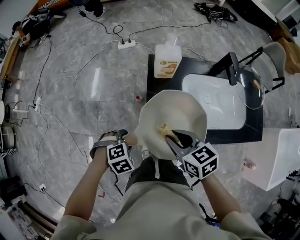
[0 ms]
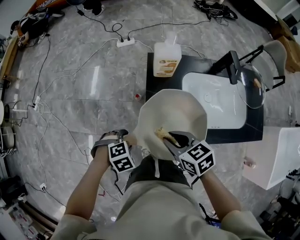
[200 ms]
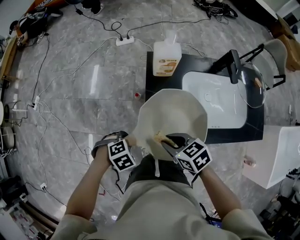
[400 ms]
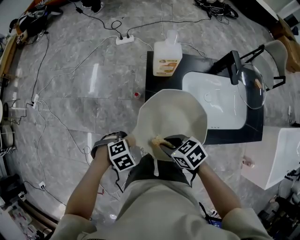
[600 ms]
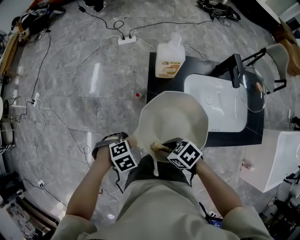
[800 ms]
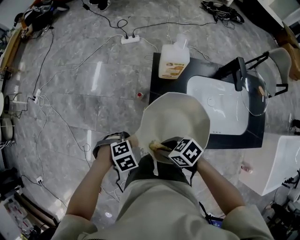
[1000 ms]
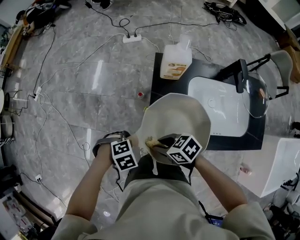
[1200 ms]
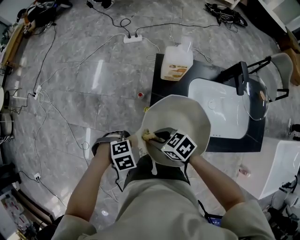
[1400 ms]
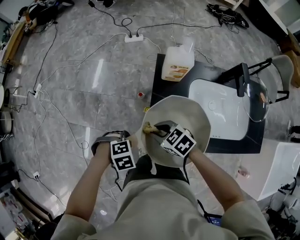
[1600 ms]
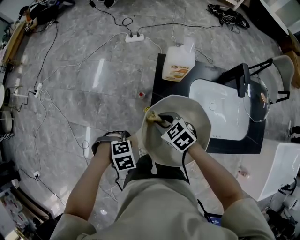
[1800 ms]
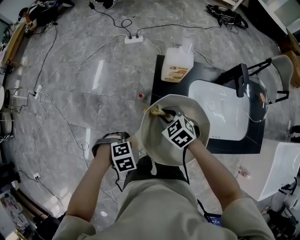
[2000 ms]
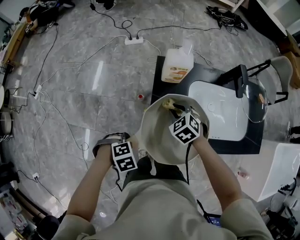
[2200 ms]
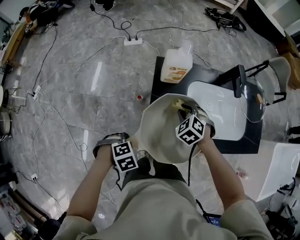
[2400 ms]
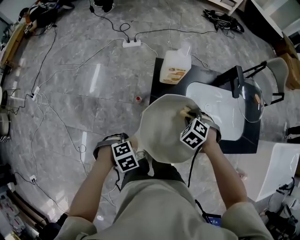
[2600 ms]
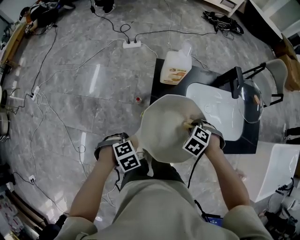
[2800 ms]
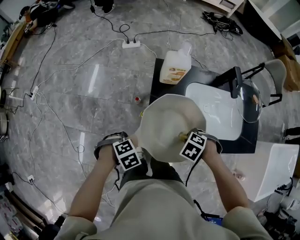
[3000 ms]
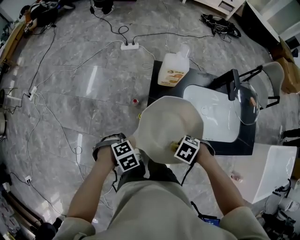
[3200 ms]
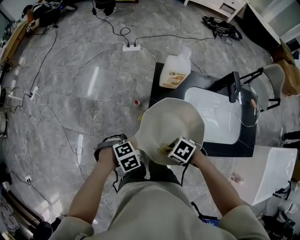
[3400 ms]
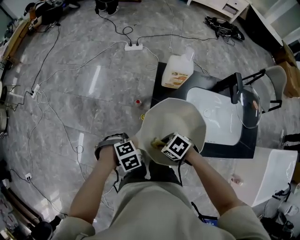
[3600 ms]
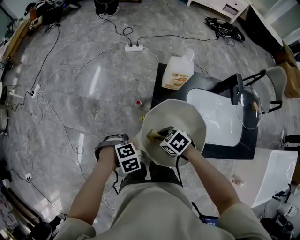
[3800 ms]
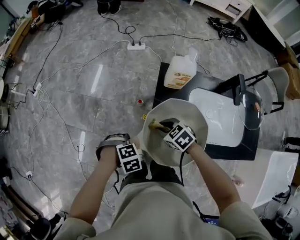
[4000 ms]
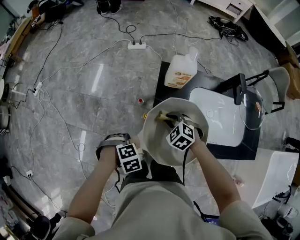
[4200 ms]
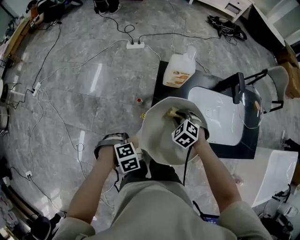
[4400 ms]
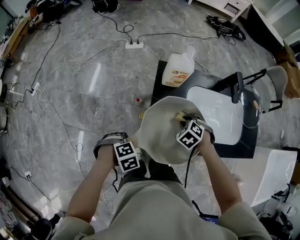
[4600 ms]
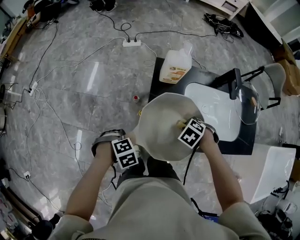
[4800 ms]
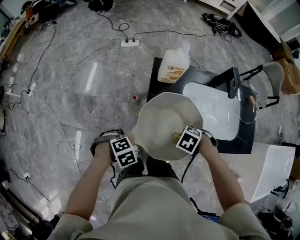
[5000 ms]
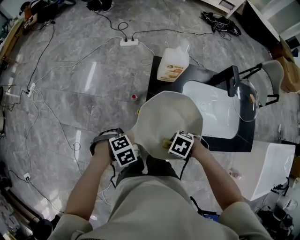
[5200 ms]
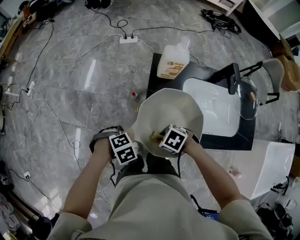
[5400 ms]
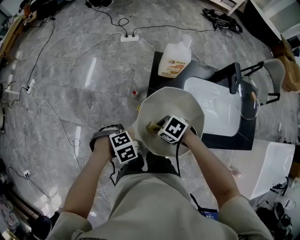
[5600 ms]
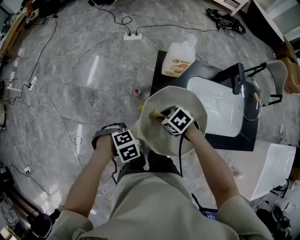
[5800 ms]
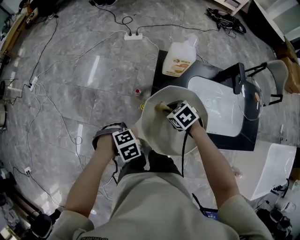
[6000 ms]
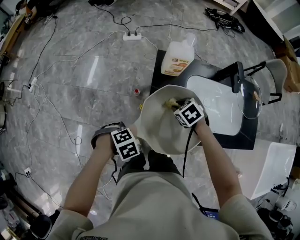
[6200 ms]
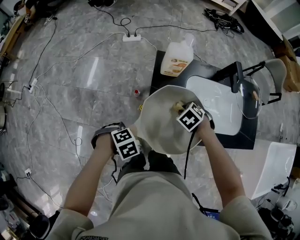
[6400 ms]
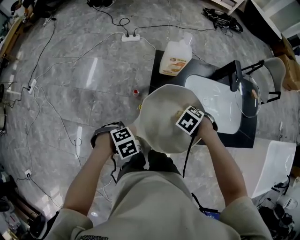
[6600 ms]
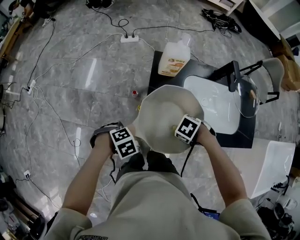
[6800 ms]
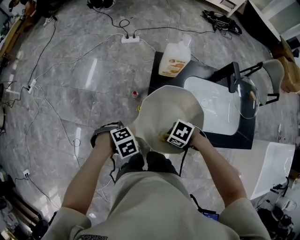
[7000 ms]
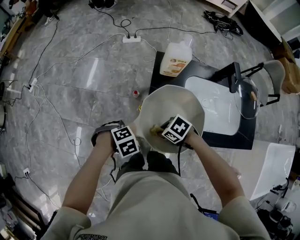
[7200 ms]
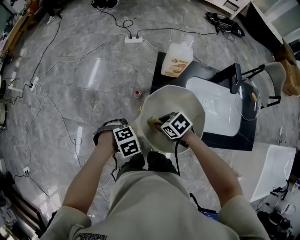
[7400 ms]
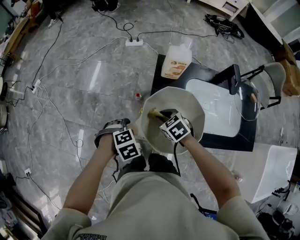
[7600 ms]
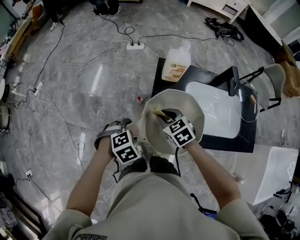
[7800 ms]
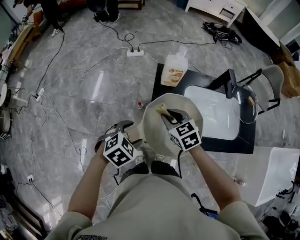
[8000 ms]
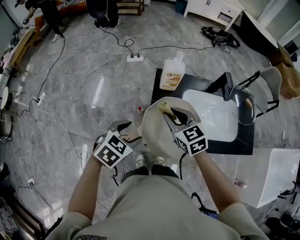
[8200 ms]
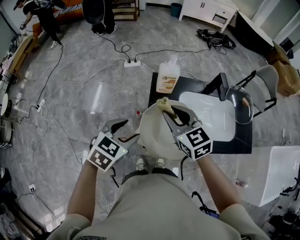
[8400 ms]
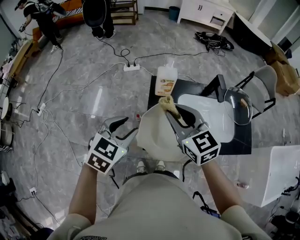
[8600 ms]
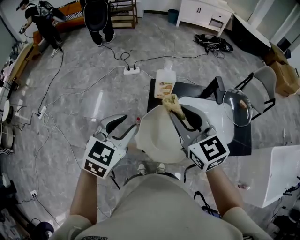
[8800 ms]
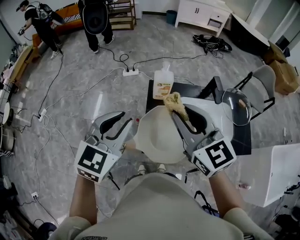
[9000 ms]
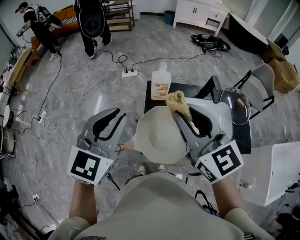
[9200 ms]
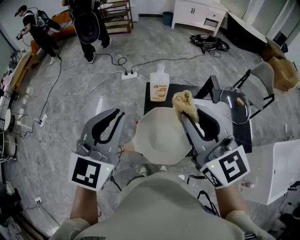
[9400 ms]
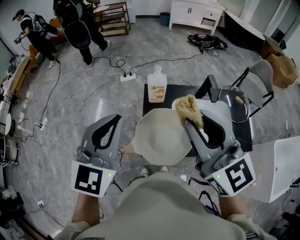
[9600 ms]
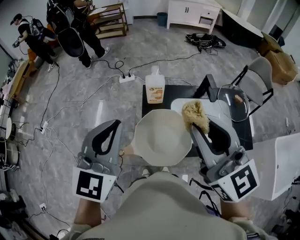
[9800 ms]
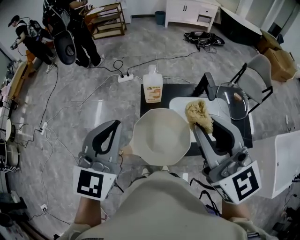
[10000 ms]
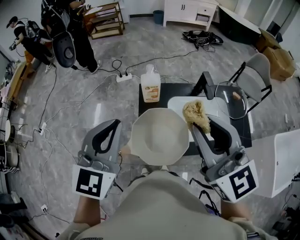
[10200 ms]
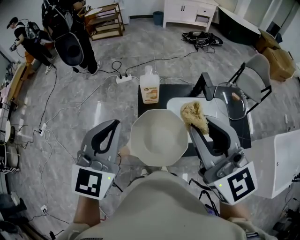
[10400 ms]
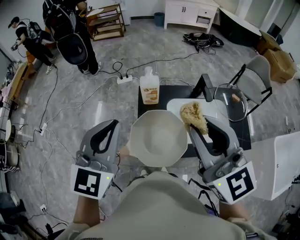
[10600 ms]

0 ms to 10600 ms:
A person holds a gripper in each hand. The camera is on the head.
0 ms to 1600 ms: The left gripper closes its fingers. The right gripper goes approximately 10 cm downward, and rotates roughly 30 degrees.
1600 ms to 3000 ms: The right gripper changes place by about 20 cm, and points its fingers approximately 40 degrees further downward.
4600 ms to 6000 ms: The right gripper changes its angle by some 30 degrees.
6000 ms to 7600 ms: The left gripper opens up.
7600 ms to 9000 ms: The two grippers go some 35 cm upward. The left gripper tilts its fingers about 60 degrees upward, and closes its fingers, while the right gripper tips its fingers upward by roughly 50 degrees.
9000 ms to 10600 ms: The left gripper travels upward by approximately 5 cm. The right gripper travels upward, to the right and backward by about 10 cm.

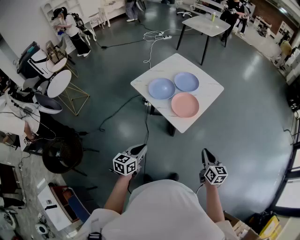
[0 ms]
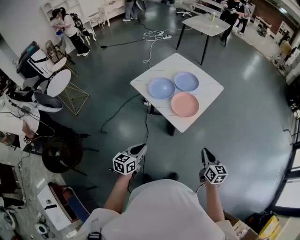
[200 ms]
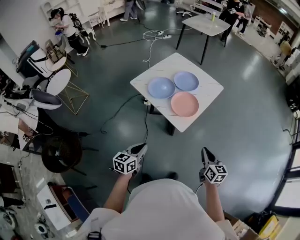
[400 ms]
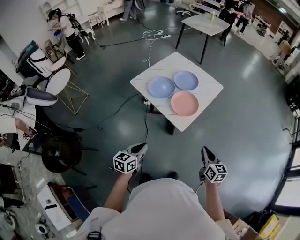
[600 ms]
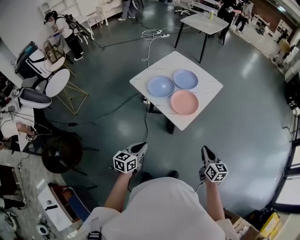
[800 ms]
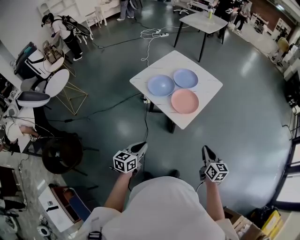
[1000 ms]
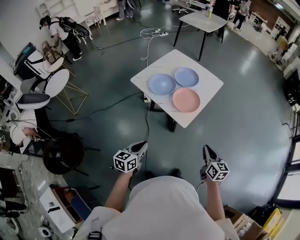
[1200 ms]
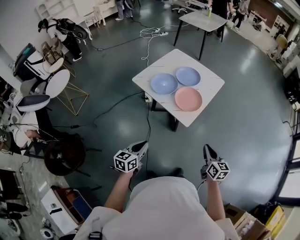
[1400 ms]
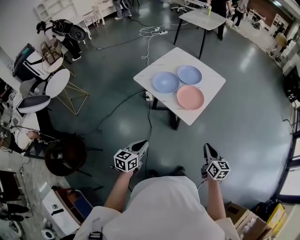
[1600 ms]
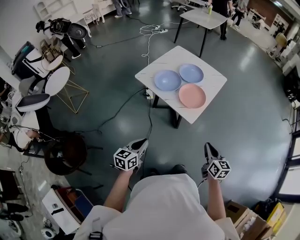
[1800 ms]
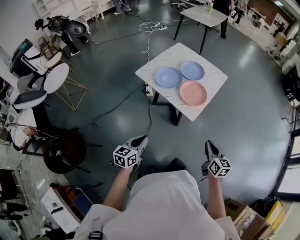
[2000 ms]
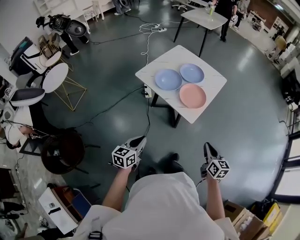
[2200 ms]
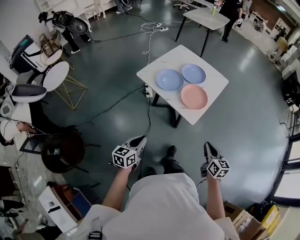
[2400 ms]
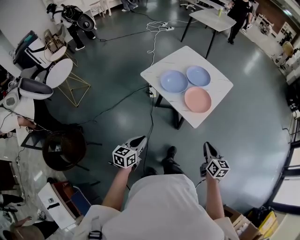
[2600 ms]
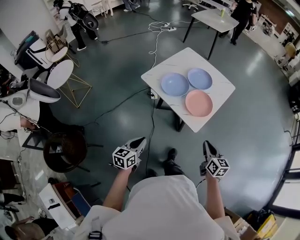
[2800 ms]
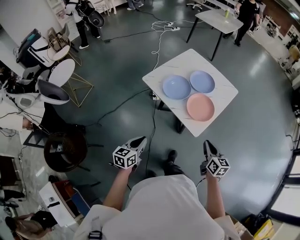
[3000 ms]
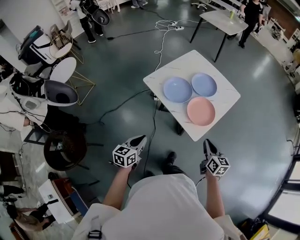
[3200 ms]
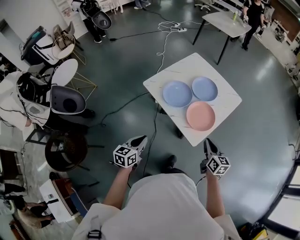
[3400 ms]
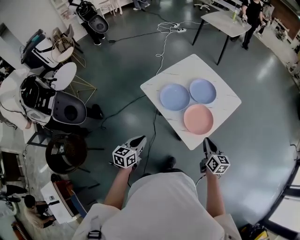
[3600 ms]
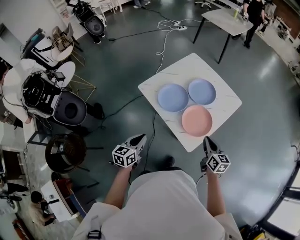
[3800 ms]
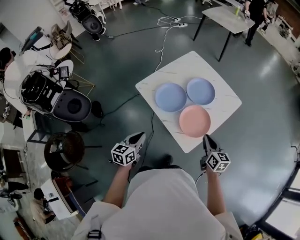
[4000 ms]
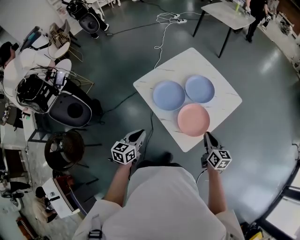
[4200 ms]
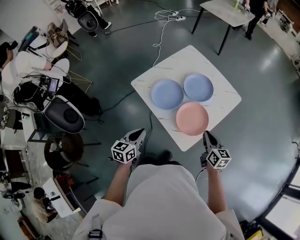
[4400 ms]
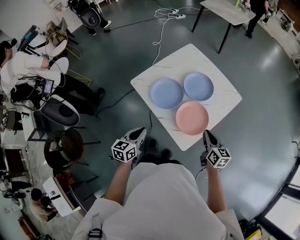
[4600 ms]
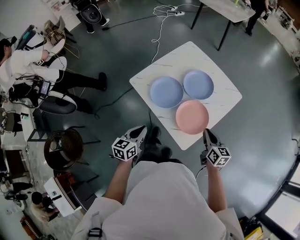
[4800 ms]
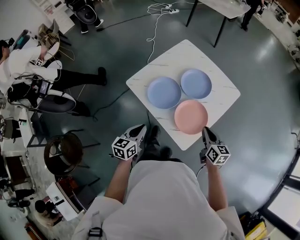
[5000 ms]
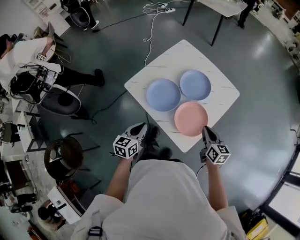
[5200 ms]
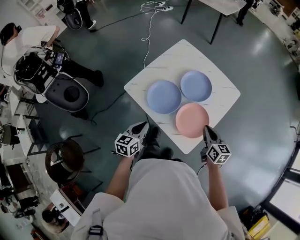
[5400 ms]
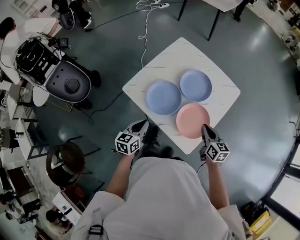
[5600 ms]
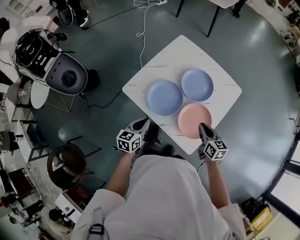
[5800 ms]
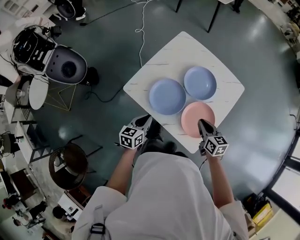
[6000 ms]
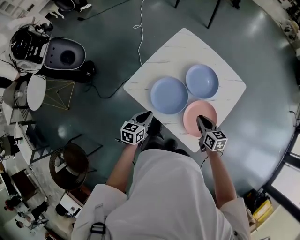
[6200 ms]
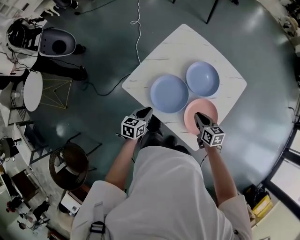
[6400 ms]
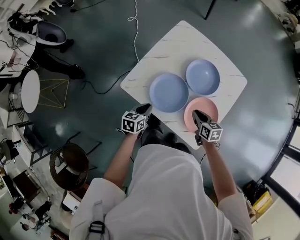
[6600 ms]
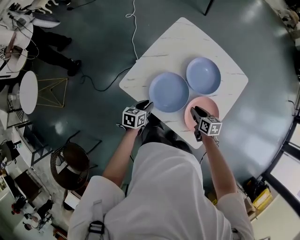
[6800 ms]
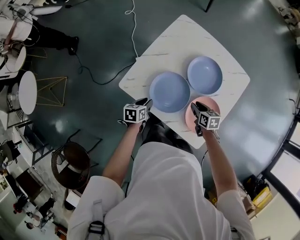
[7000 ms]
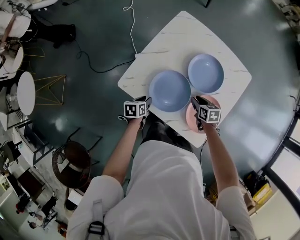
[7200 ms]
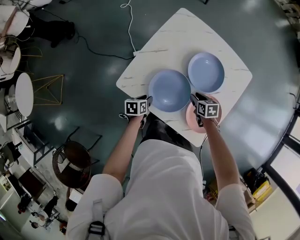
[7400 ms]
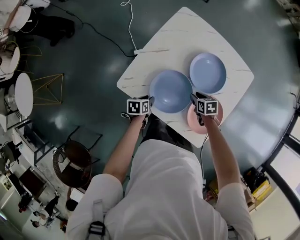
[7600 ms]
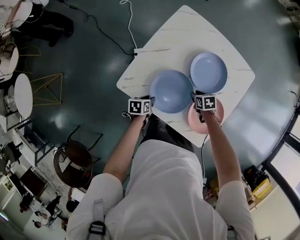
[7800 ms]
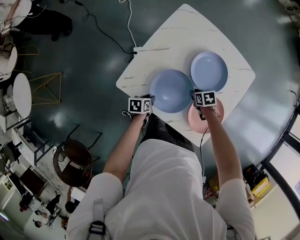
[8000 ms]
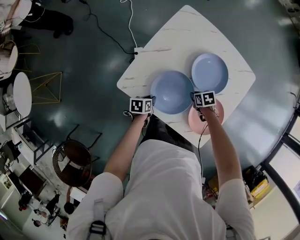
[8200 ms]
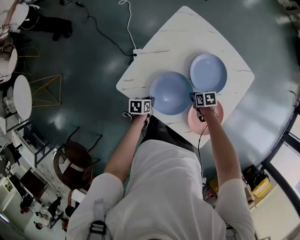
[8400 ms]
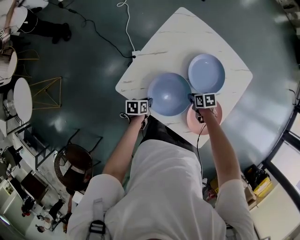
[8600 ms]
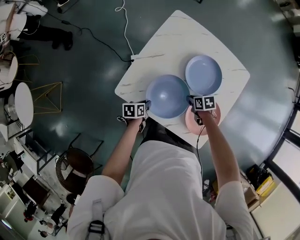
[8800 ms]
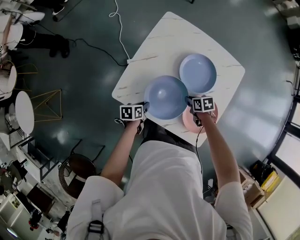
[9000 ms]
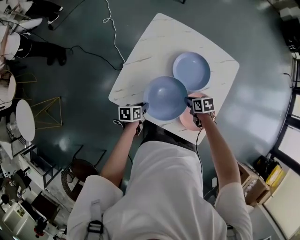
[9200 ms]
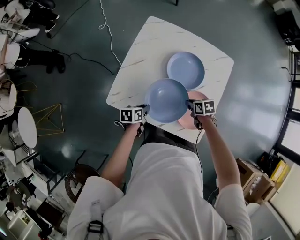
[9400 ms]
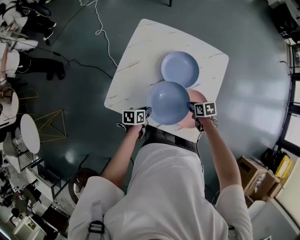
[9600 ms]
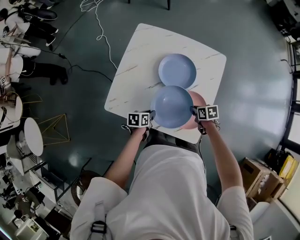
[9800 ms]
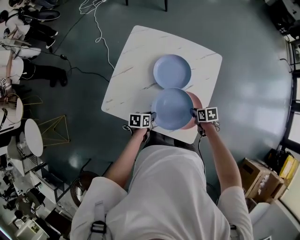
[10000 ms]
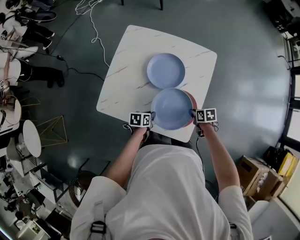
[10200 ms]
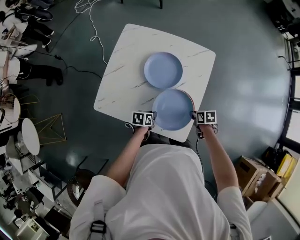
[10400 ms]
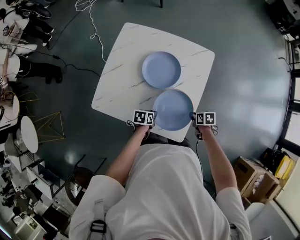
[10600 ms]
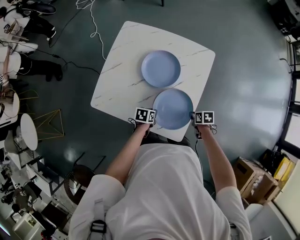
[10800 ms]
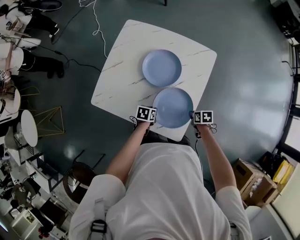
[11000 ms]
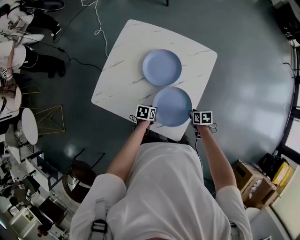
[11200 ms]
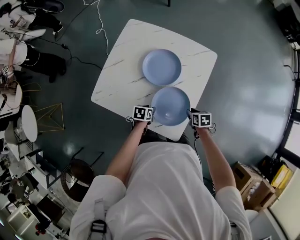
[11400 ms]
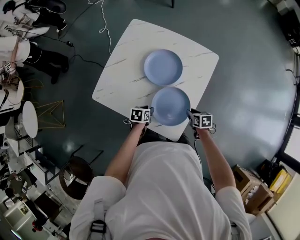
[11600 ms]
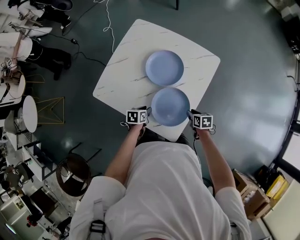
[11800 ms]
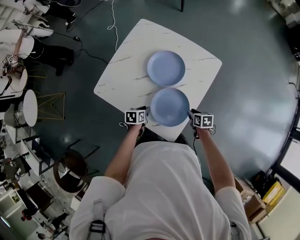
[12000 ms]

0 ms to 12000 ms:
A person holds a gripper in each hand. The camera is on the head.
0 ms to 1600 ms: Both grippers move to the left, some 5 cm.
1600 ms to 3000 ms: Both grippers travel together forward and to the left, some 15 cm.
3000 ms to 4400 ms: The left gripper shifts some 20 cm forward and to the right; the right gripper travels forward by roughly 20 cm.
4400 ms to 6000 ms: The right gripper goes approximately 15 cm forward, to the left and downward; the left gripper travels forward and downward by roughly 20 cm.
6000 ms to 7600 ms: Both grippers move downward and forward, some 25 cm. The left gripper changes its angle by roughly 30 degrees, and opens; the right gripper angles its fingers downward, by roughly 30 degrees, and opens its fingers.
7600 ms to 9000 ms: The grippers stay close to where they were, moving slightly.
9000 ms to 10400 ms: The left gripper goes roughly 20 cm to the right. The right gripper travels to the right and backward by roughly 25 cm.
10400 ms to 12000 ms: The grippers make only small movements.

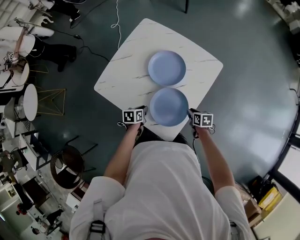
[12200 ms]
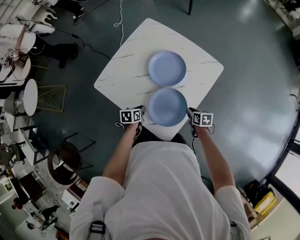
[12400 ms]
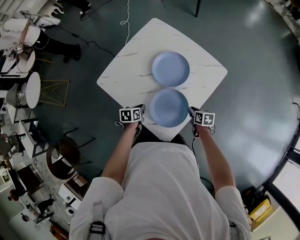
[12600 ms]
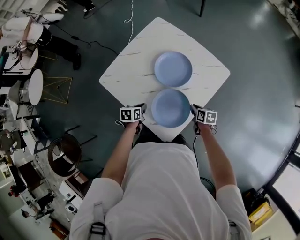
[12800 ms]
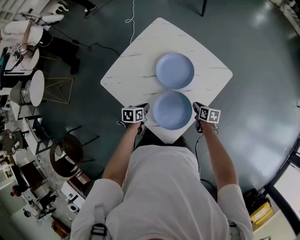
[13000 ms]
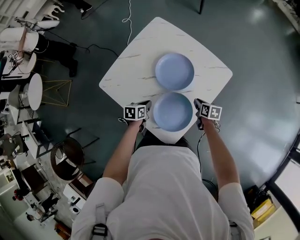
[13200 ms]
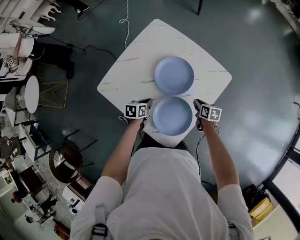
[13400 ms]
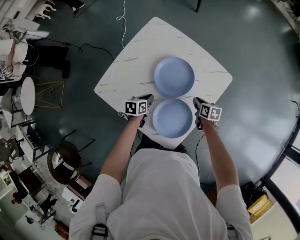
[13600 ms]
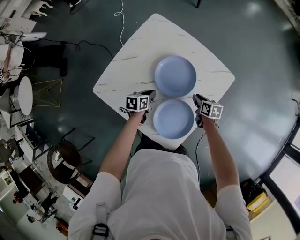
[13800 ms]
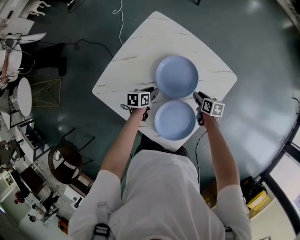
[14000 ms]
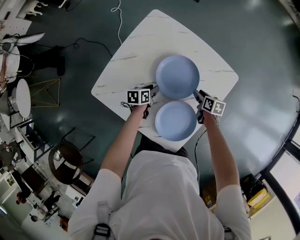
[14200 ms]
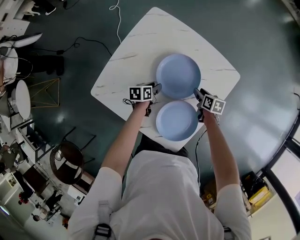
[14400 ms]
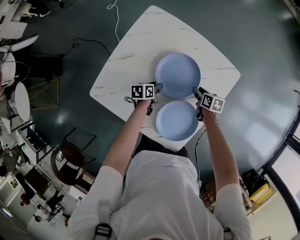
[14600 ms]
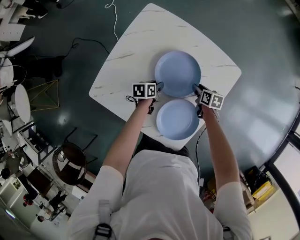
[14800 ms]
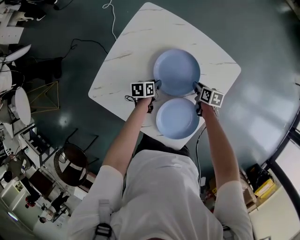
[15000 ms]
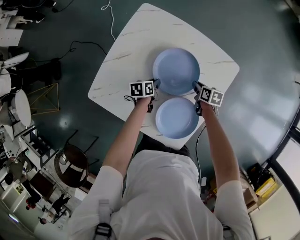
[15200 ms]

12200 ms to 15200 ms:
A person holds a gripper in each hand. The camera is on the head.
12200 ms to 13800 ms: Both grippers travel together forward, approximately 15 cm.
13800 ms to 15200 ms: The right gripper shifts by roughly 5 cm, and opens and closes again, while the left gripper moves downward and forward, roughly 10 cm.
